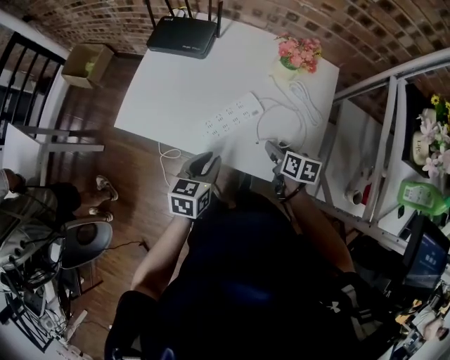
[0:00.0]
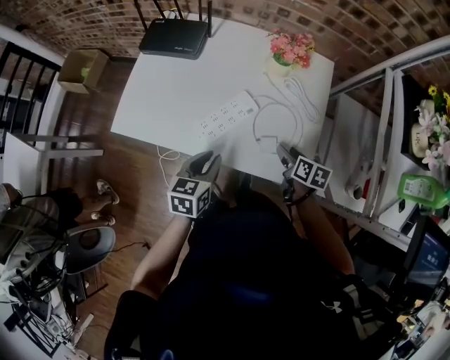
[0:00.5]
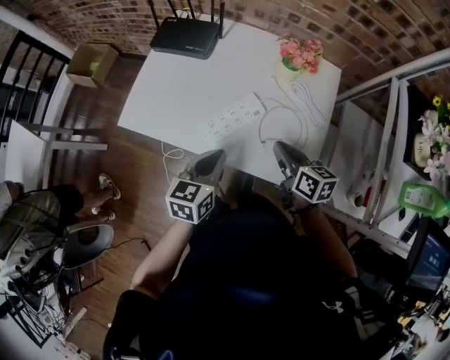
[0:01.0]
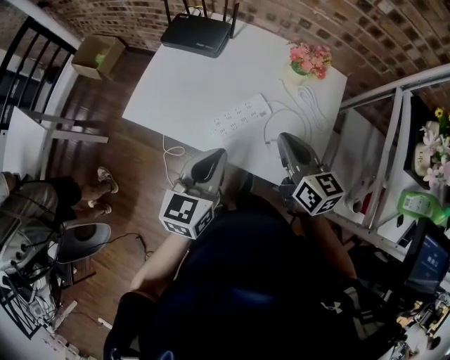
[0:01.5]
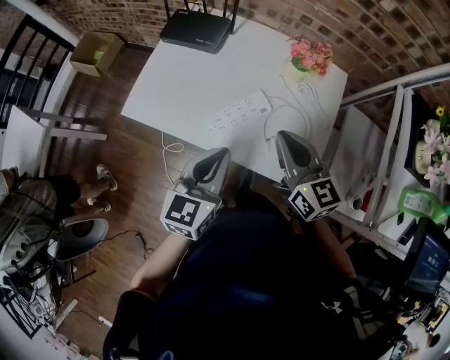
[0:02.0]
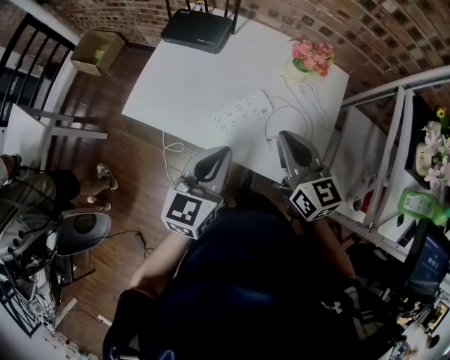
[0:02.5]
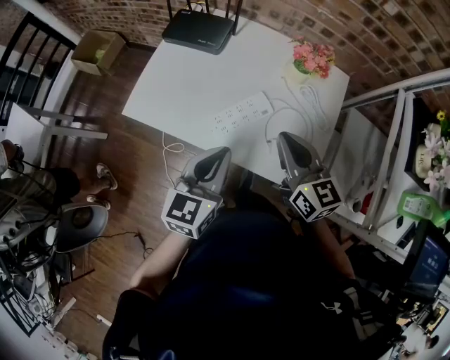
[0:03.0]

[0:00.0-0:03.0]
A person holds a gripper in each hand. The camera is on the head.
0:00.0 to 0:01.5: The left gripper shifts some 15 cm upward, swivels about 20 degrees, and closes its fingers, while the right gripper travels upward by approximately 20 cm, turns by some 40 degrees, and closes.
0:01.5 to 0:03.0: The grippers make only small movements.

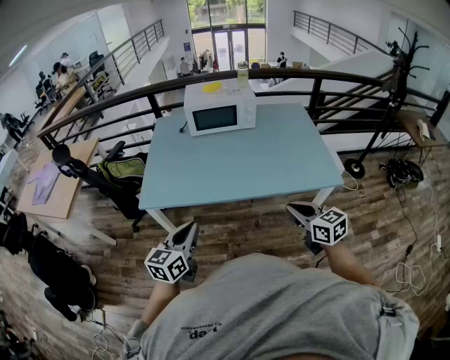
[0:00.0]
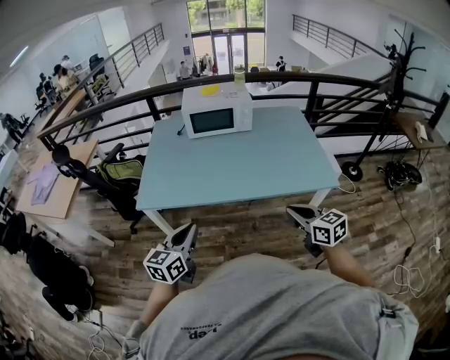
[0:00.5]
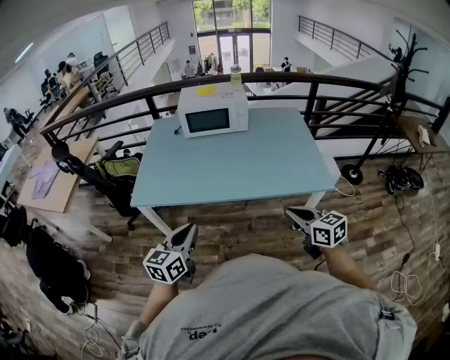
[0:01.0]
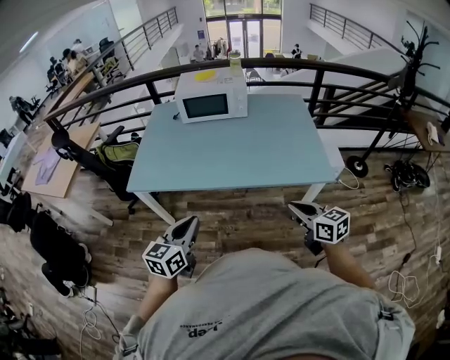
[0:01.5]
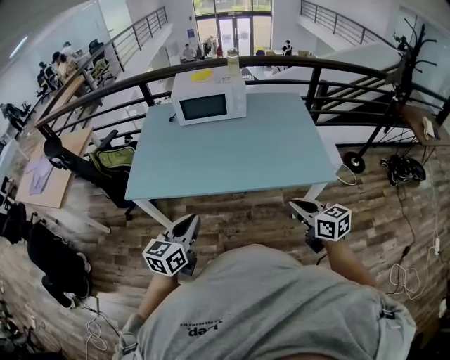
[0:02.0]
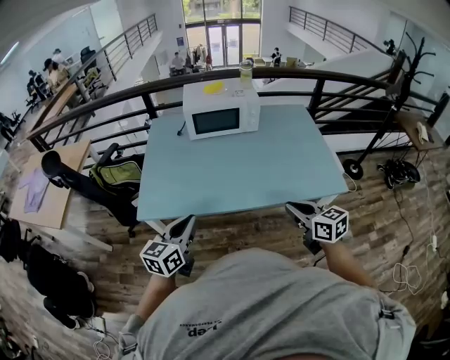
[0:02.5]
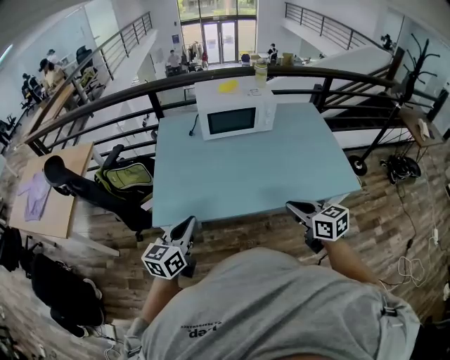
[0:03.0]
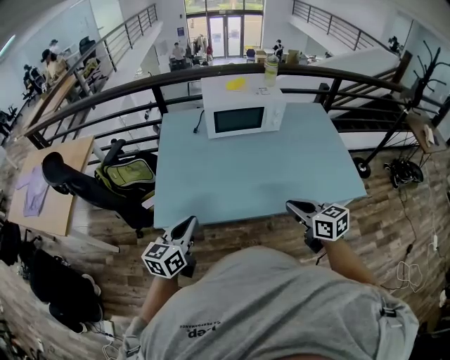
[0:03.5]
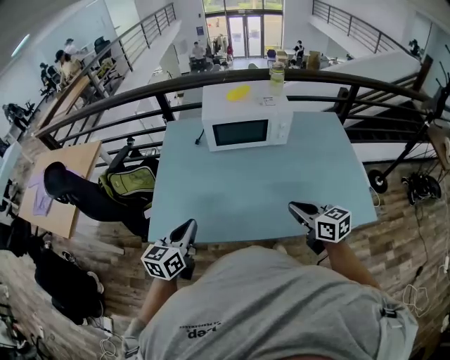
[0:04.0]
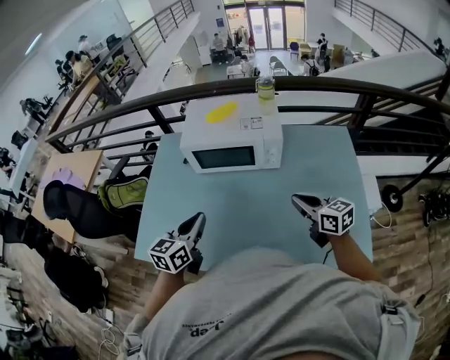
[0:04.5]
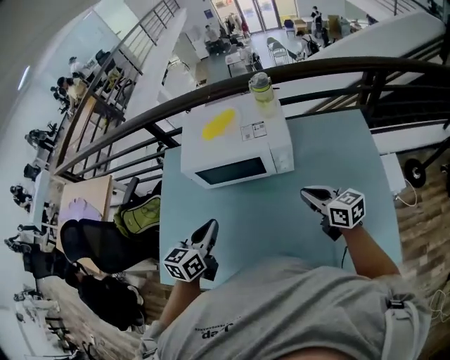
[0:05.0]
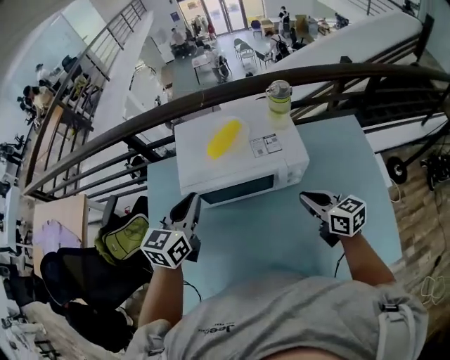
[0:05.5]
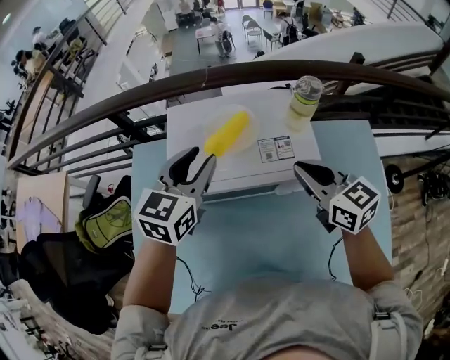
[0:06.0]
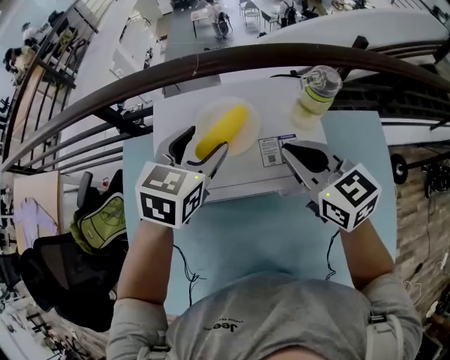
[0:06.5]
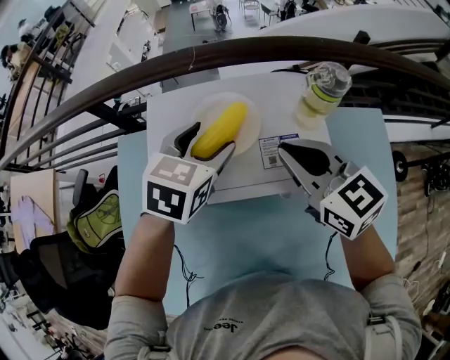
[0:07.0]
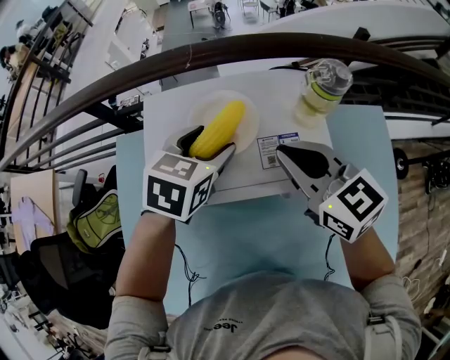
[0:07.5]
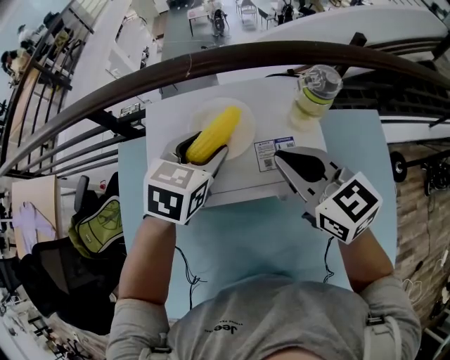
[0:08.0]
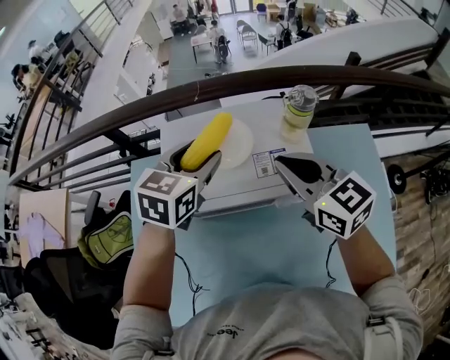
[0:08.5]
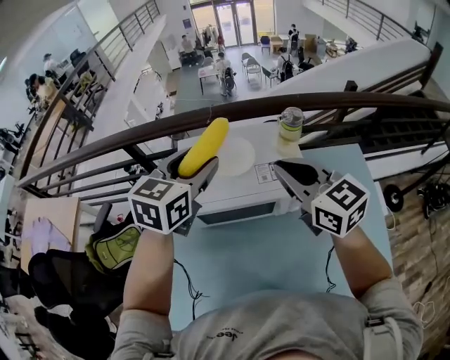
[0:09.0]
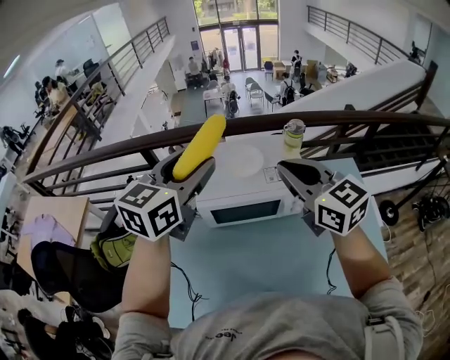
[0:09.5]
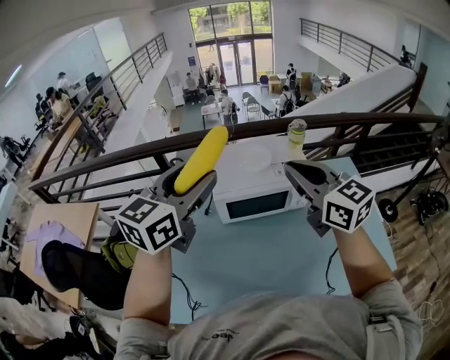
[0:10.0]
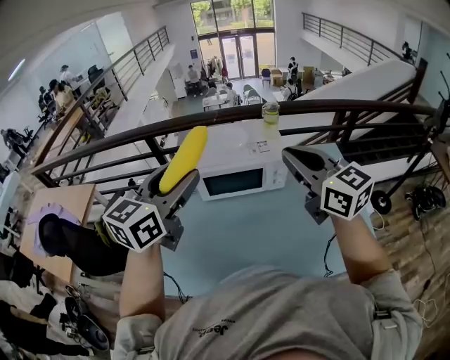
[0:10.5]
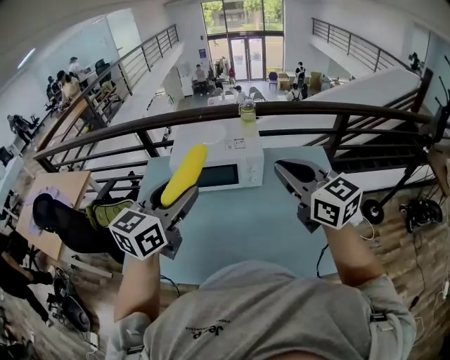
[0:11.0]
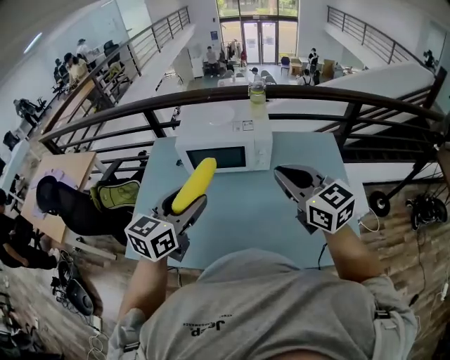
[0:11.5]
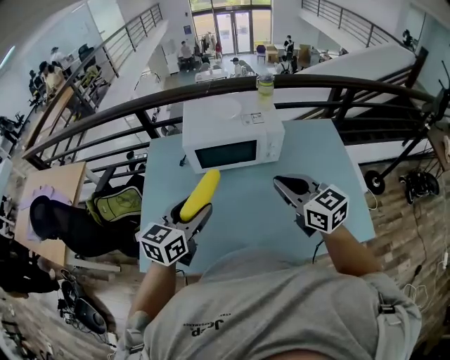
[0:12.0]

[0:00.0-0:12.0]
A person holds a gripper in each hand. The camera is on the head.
0:00.0 to 0:02.0: Both grippers move to the right, roughly 10 cm.
0:02.0 to 0:04.0: The grippers both shift forward and to the left by approximately 30 cm.
0:04.0 to 0:06.0: The two grippers travel together, forward, roughly 50 cm. The left gripper opens up.
0:06.0 to 0:08.0: The right gripper heads forward, covering roughly 5 cm. Meanwhile the left gripper shifts about 10 cm downward and forward.
0:08.0 to 0:10.0: The left gripper moves upward, backward and to the left, roughly 40 cm, and tilts its fingers about 30 degrees upward. The right gripper travels upward and backward by roughly 30 cm.
0:10.0 to 0:12.0: The right gripper travels downward, backward and to the right by about 20 cm, while the left gripper shifts approximately 25 cm downward and backward.

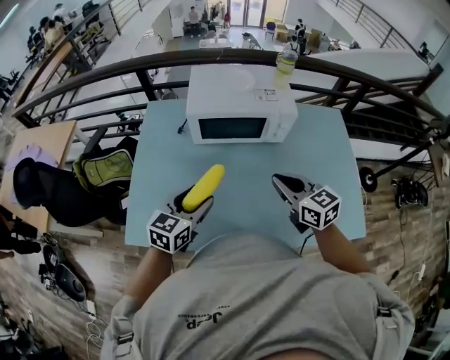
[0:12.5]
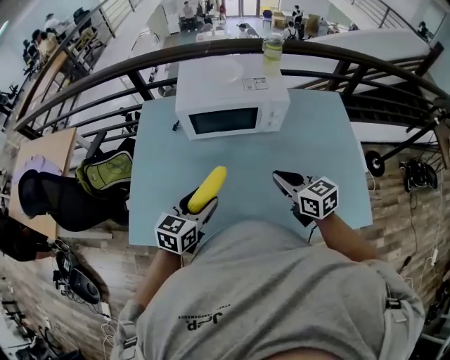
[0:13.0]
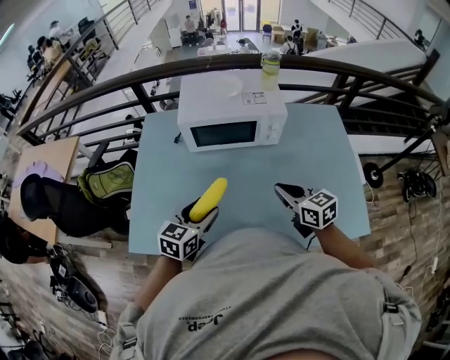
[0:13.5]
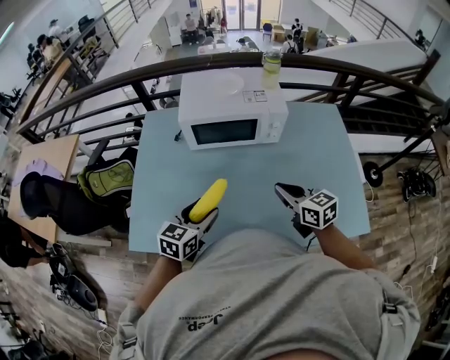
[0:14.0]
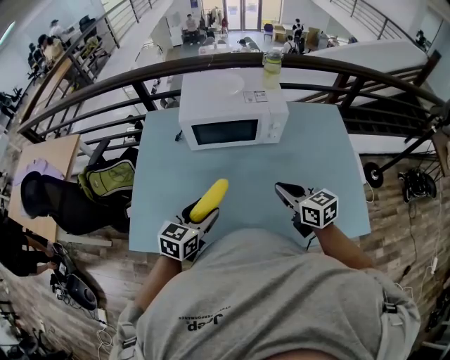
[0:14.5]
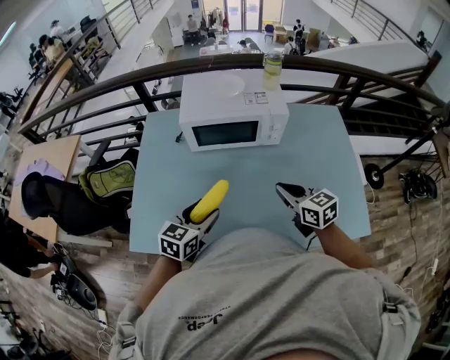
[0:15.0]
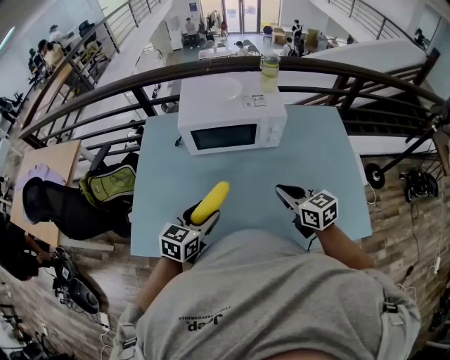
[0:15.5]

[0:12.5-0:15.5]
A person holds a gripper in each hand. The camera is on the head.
0:12.5 to 0:14.0: The right gripper moves downward, about 5 cm. The left gripper shifts by some 5 cm.
0:14.0 to 0:15.5: Both grippers stay put.

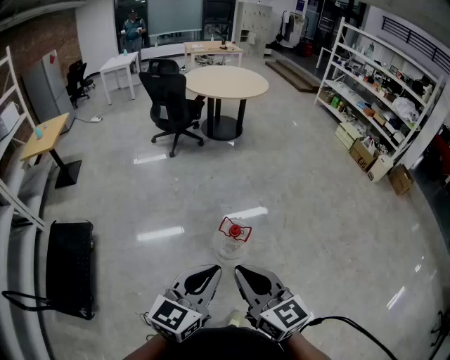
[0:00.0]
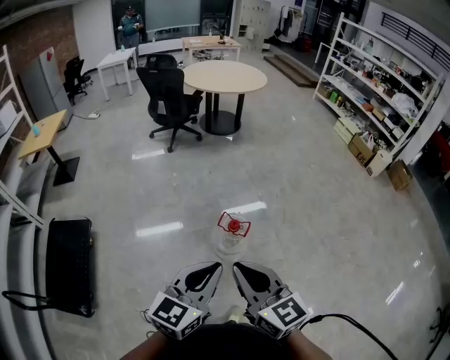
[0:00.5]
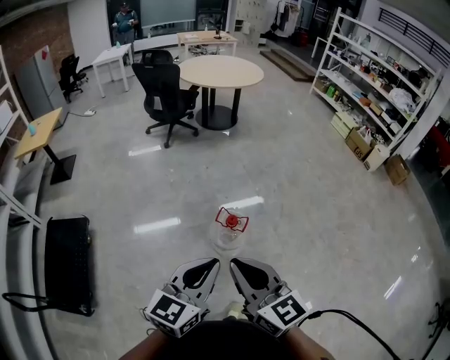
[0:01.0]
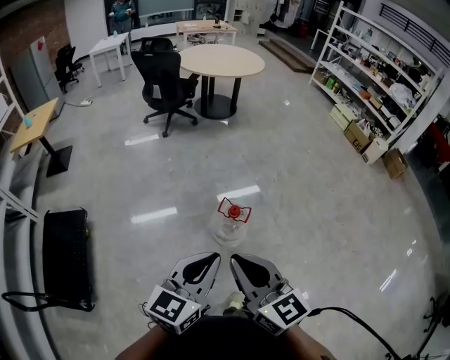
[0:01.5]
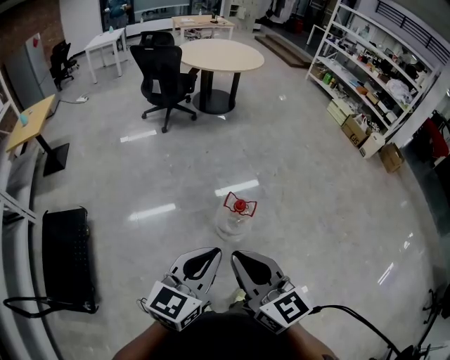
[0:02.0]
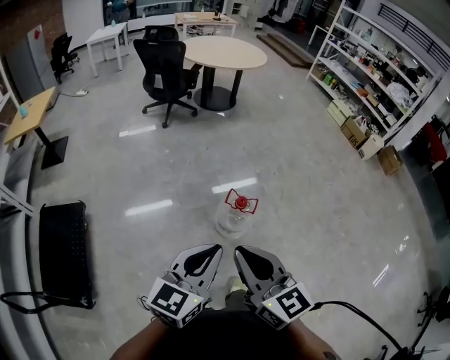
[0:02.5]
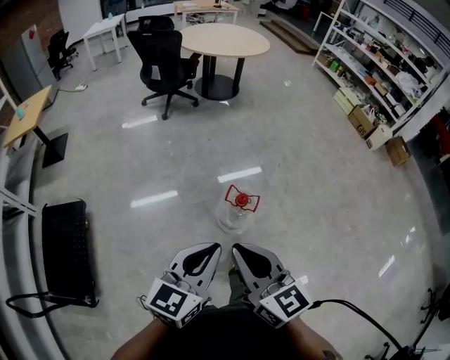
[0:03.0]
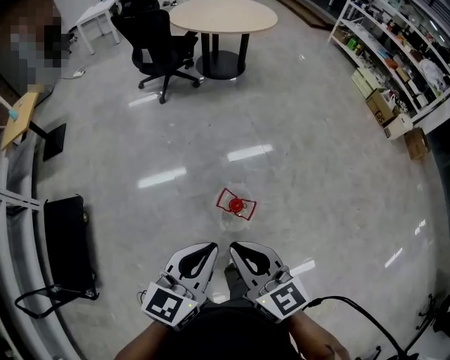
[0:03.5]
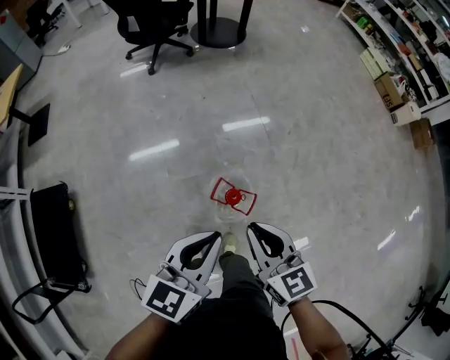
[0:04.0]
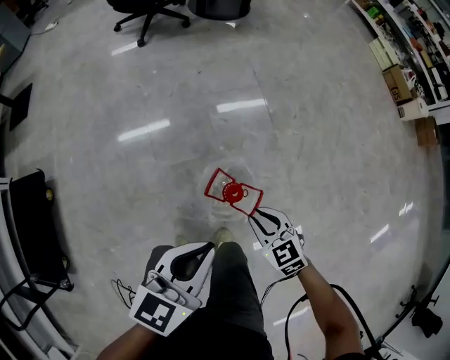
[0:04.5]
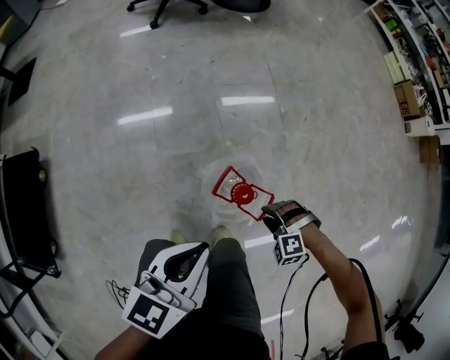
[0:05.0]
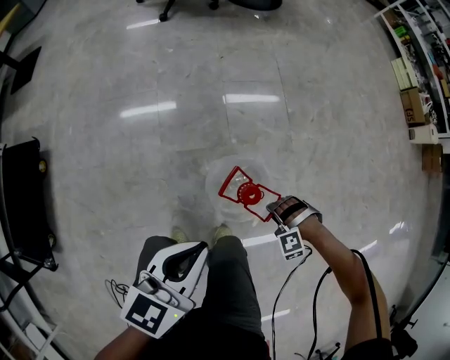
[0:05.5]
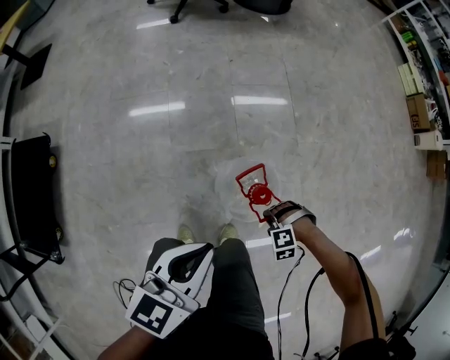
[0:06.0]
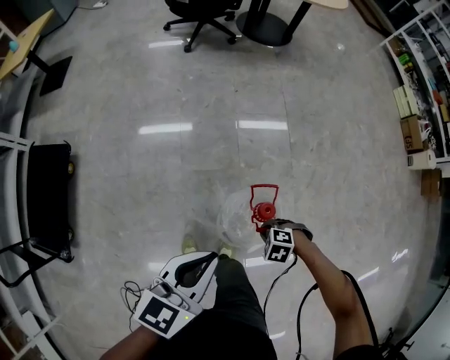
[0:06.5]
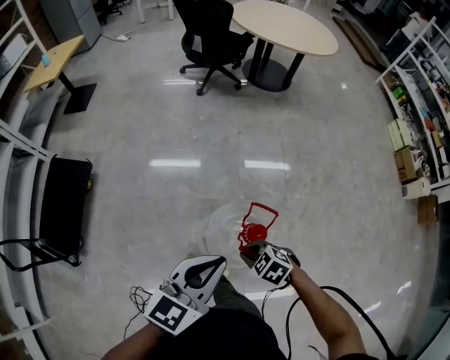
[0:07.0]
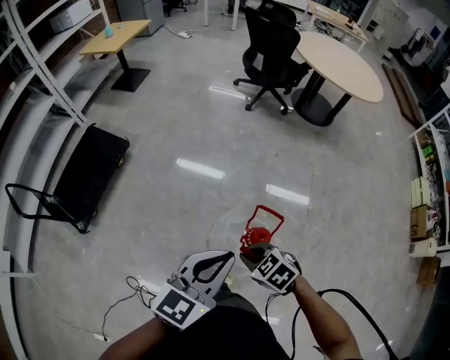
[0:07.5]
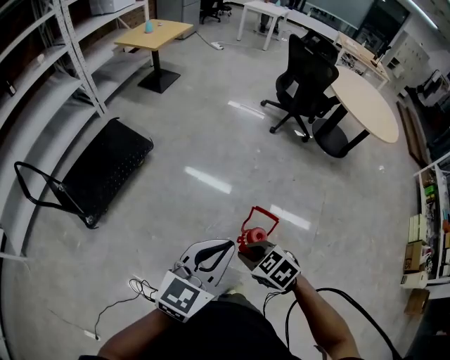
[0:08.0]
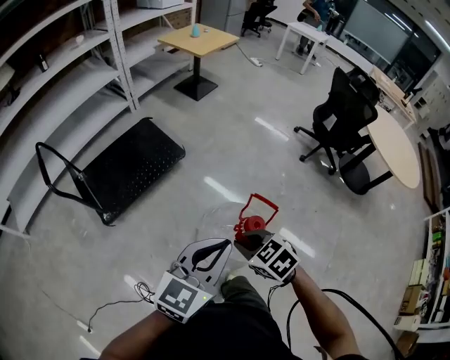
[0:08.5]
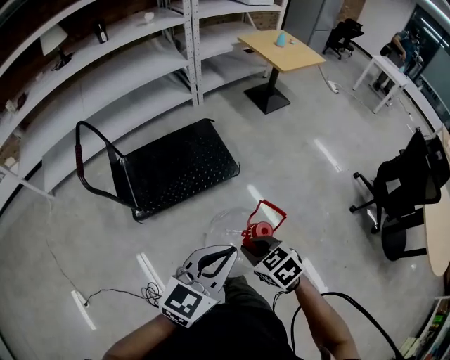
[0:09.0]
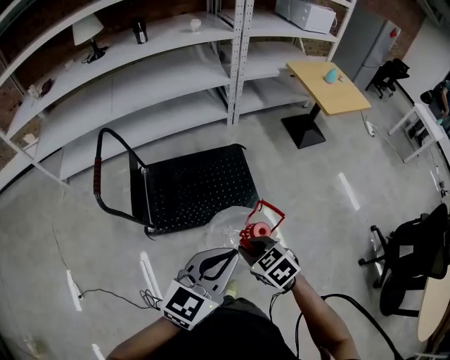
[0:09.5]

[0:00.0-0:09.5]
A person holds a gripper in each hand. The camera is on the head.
0:00.0 to 0:02.0: Both grippers move to the left, about 10 cm.
0:02.0 to 0:04.0: The right gripper heads forward, downward and to the right, covering about 50 cm; the left gripper travels forward and downward by some 40 cm.
0:04.0 to 0:05.5: The left gripper travels downward by roughly 25 cm, while the right gripper is displaced downward by approximately 50 cm, rotates around the line of its fingers by roughly 100 degrees, counterclockwise from behind, and opens its fingers.
0:05.5 to 0:07.5: The two grippers go some 40 cm upward. The right gripper changes its angle by some 60 degrees, and closes up. The left gripper turns by roughly 30 degrees.
0:07.5 to 0:09.5: The pair of grippers is taken roughly 90 cm. The right gripper turns by about 50 degrees. Meanwhile the left gripper swivels some 50 degrees.
